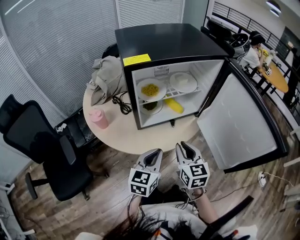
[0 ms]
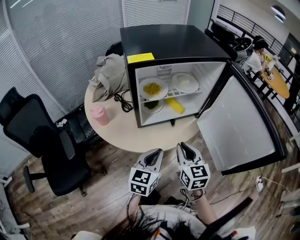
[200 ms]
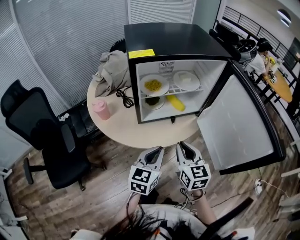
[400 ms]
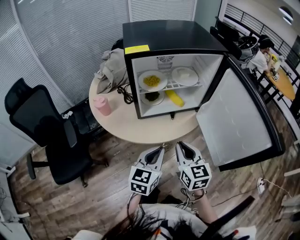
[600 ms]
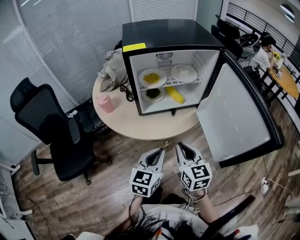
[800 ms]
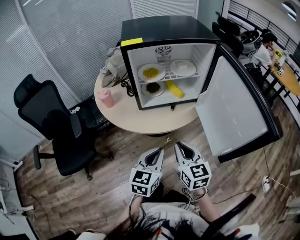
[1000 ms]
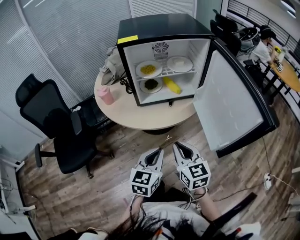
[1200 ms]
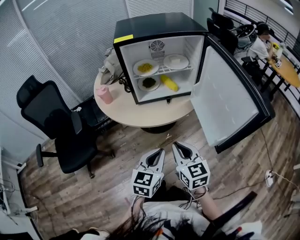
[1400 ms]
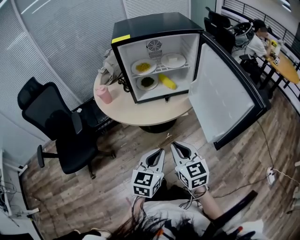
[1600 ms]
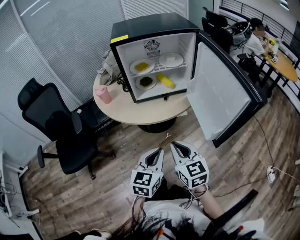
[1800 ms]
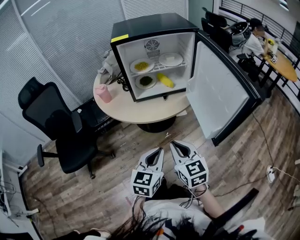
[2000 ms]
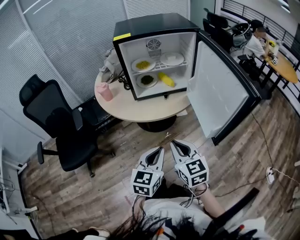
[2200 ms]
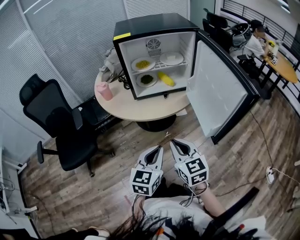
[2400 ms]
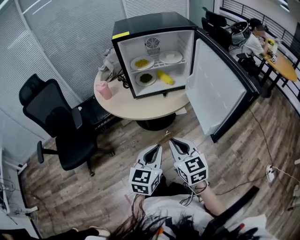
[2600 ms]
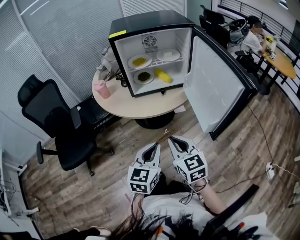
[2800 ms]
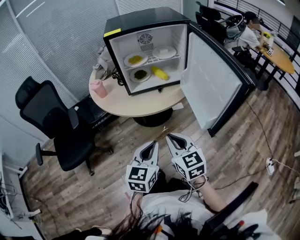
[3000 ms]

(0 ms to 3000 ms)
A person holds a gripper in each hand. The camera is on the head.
0 ms - 1600 ms: The right gripper shifts some 15 cm backward. Meanwhile the left gripper travels backward and to the right by about 20 cm.
1600 ms - 3000 ms: The grippers stay close to where they were, moving slightly.

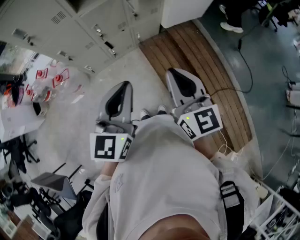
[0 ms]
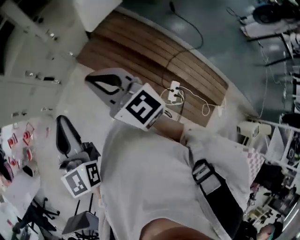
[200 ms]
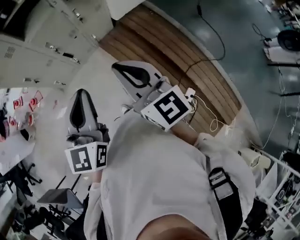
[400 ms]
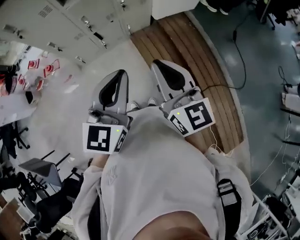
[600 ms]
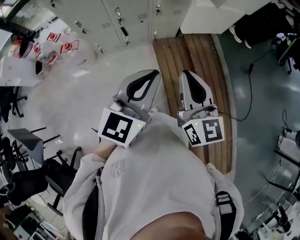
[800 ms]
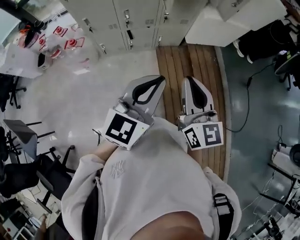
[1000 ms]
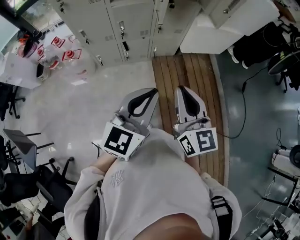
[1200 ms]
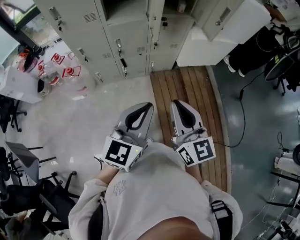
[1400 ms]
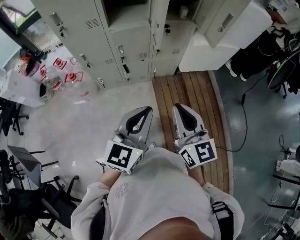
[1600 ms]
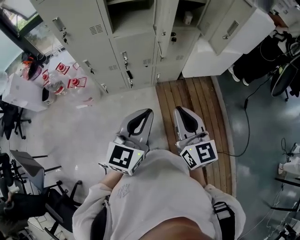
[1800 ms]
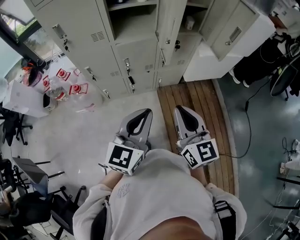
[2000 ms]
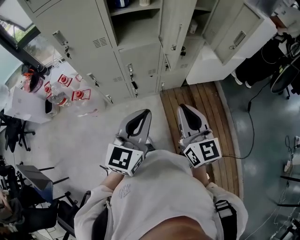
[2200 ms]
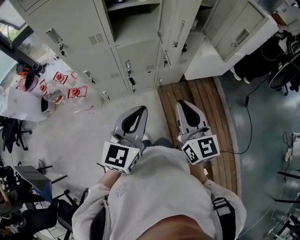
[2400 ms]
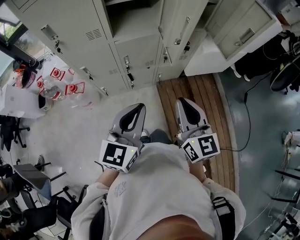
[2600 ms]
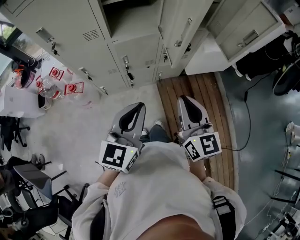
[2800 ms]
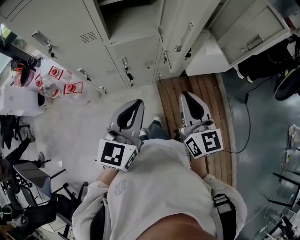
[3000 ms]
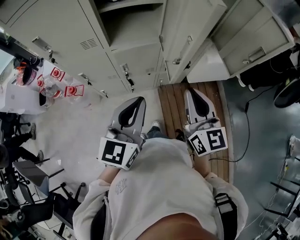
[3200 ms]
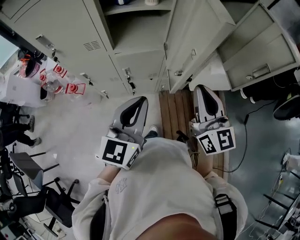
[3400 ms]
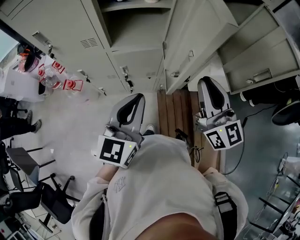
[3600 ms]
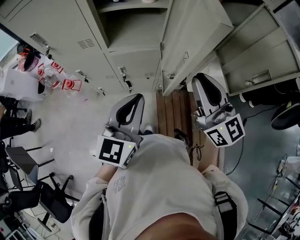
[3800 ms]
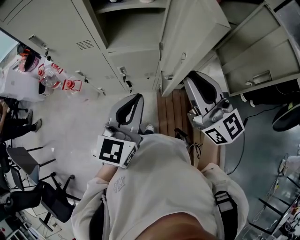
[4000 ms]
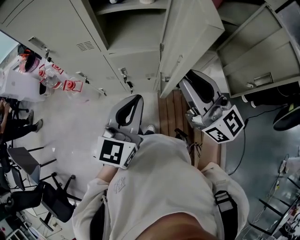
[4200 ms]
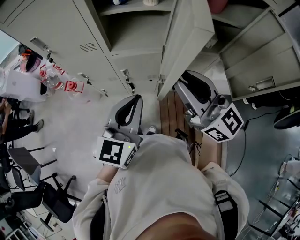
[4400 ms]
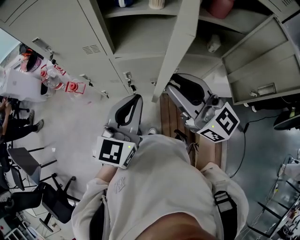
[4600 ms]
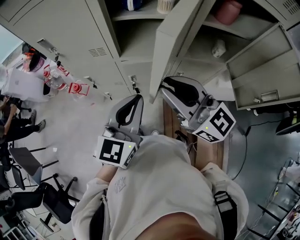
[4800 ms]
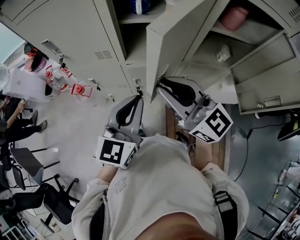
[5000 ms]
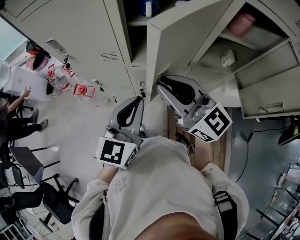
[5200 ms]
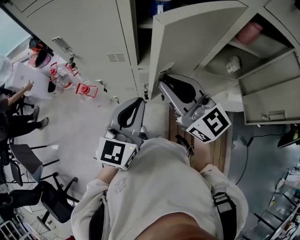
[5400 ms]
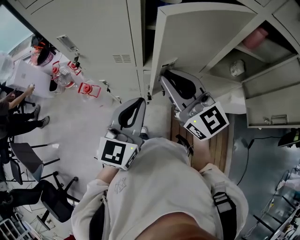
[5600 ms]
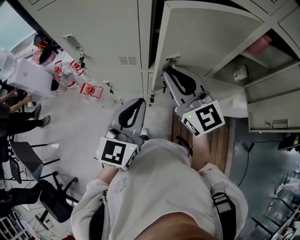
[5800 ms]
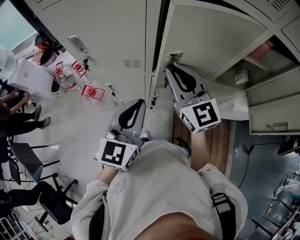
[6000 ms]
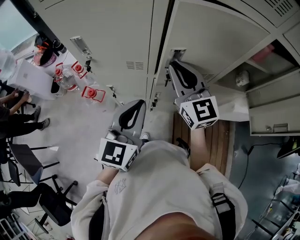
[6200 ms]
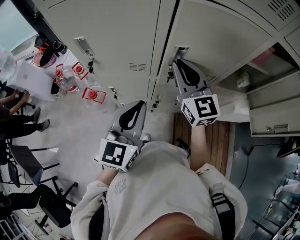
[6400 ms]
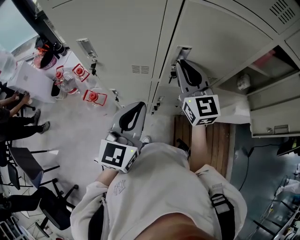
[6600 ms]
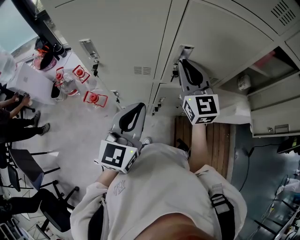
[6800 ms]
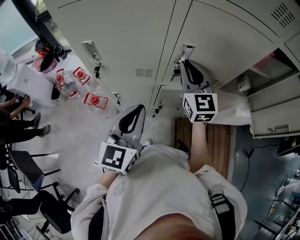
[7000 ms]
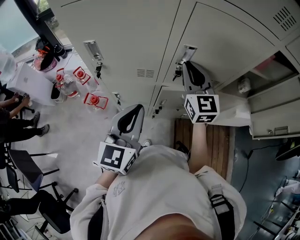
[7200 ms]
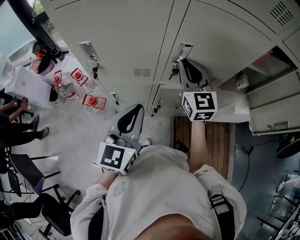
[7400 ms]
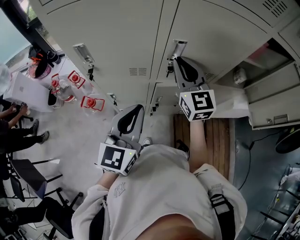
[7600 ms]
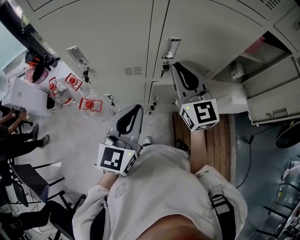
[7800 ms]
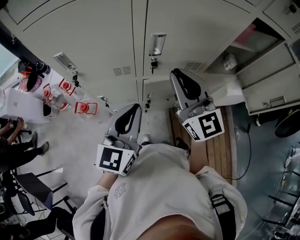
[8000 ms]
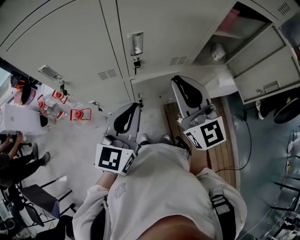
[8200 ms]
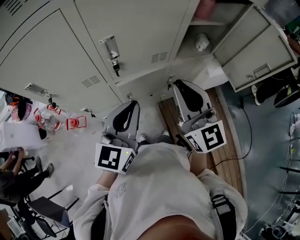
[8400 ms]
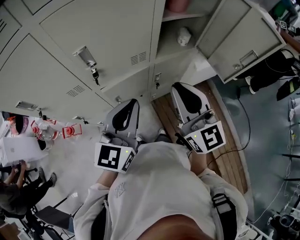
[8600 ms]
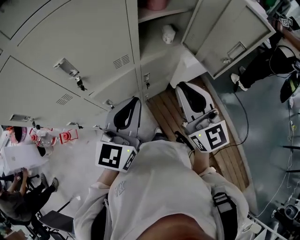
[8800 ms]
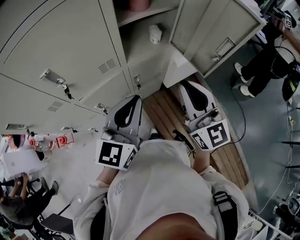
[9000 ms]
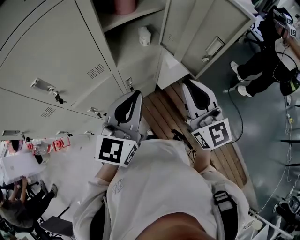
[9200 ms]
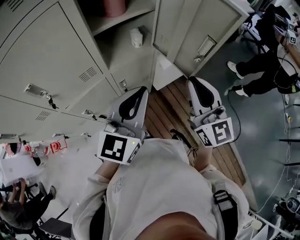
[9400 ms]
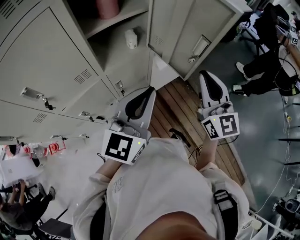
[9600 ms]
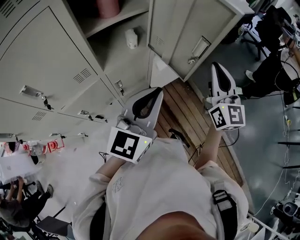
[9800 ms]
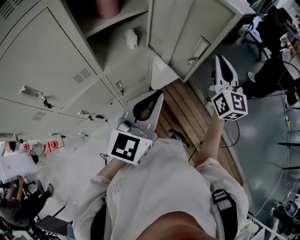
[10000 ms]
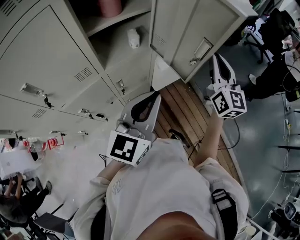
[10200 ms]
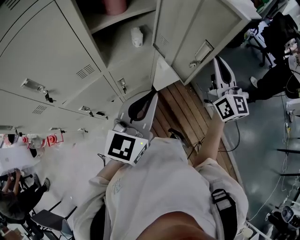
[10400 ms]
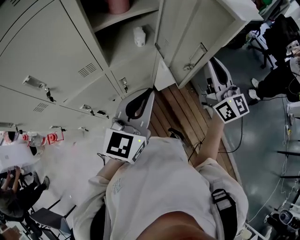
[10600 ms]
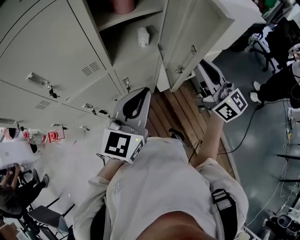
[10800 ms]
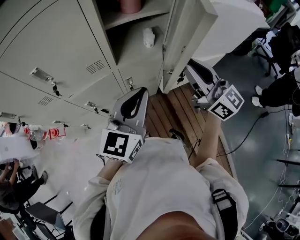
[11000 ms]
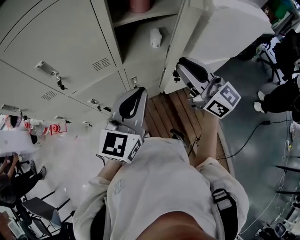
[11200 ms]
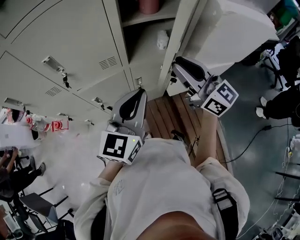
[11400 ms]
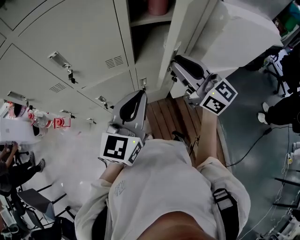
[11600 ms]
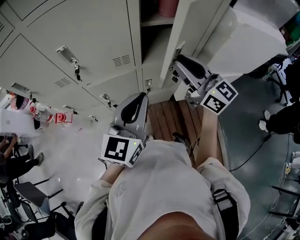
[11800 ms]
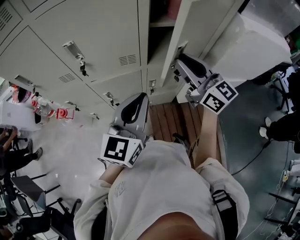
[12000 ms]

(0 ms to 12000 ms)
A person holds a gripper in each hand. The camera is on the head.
0 ms - 1600 ms: The left gripper travels to the right by about 5 cm. The right gripper is displaced forward by roughly 10 cm, and turns by roughly 30 degrees.
1600 ms - 3000 ms: The right gripper travels forward by some 20 cm; the left gripper goes some 20 cm forward and to the left.
3000 ms - 4400 ms: The left gripper travels forward by roughly 10 cm. The right gripper travels forward and upward by roughly 15 cm, and swivels about 40 degrees.
4400 ms - 6000 ms: The left gripper is displaced to the left and forward by approximately 20 cm. The right gripper moves forward and to the left, about 25 cm, and turns by approximately 20 degrees.
6000 ms - 7600 ms: The right gripper is displaced forward by roughly 5 cm.
7600 ms - 9000 ms: The right gripper changes place by some 40 cm, and changes its angle by roughly 20 degrees, while the left gripper ends up some 30 cm from where it was, and changes its angle by approximately 30 degrees.
9000 ms - 10400 ms: The left gripper shifts some 15 cm to the right; the right gripper heads to the right and forward, covering roughly 25 cm.
10400 ms - 12000 ms: The right gripper shifts by approximately 25 cm, and rotates some 50 degrees; the left gripper shifts by approximately 15 cm, and changes its angle by about 20 degrees.

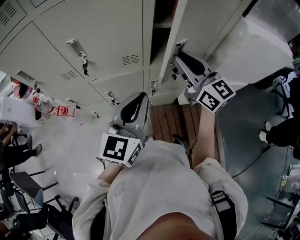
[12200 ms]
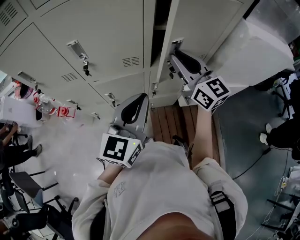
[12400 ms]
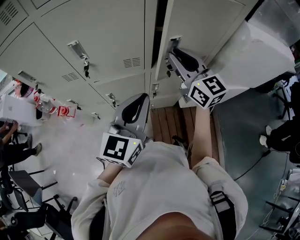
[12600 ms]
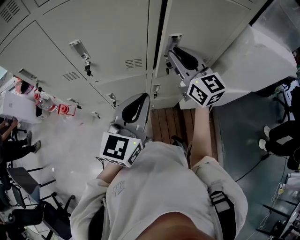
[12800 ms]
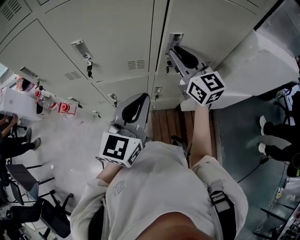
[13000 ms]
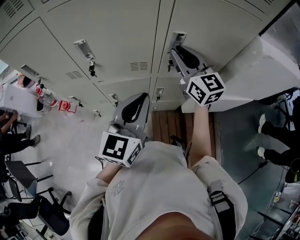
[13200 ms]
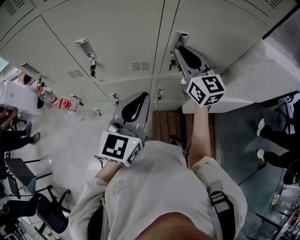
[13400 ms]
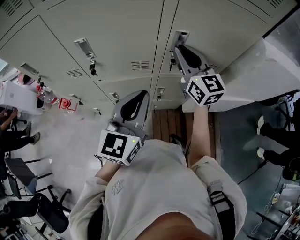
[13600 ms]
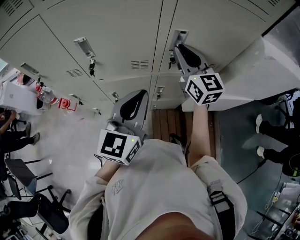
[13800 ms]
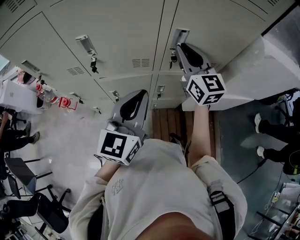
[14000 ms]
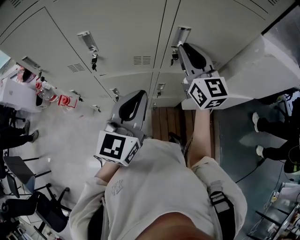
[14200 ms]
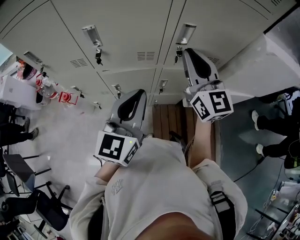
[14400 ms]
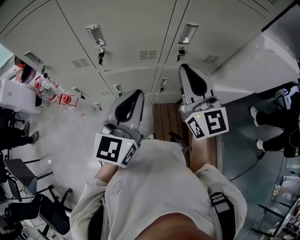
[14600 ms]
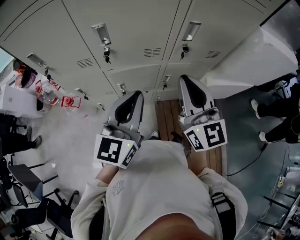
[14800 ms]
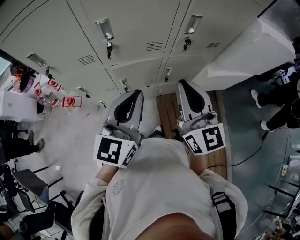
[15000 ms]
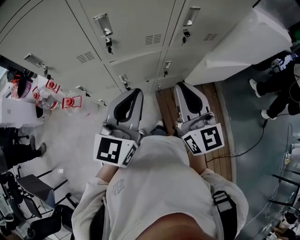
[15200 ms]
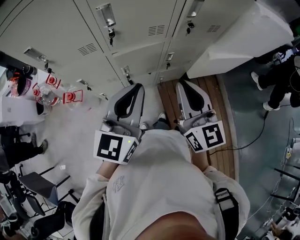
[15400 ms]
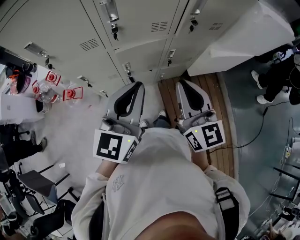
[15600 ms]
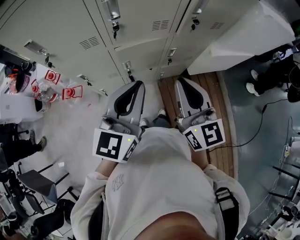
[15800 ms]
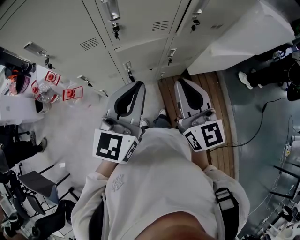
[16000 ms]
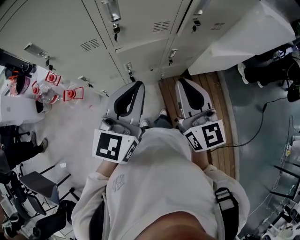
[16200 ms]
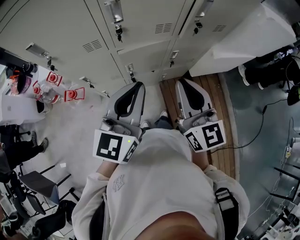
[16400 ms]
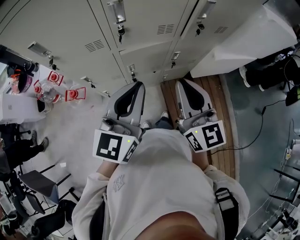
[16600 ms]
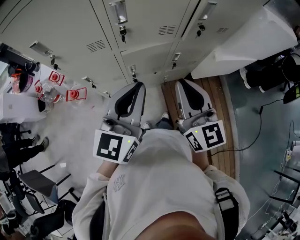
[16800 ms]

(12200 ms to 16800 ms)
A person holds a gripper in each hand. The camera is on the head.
12200 ms - 13800 ms: The right gripper travels forward by roughly 10 cm.
13800 ms - 15200 ms: The right gripper goes approximately 25 cm backward and to the left. The left gripper heads to the left and backward, covering approximately 15 cm.
15200 ms - 16800 ms: The right gripper ends up about 5 cm from where it was.

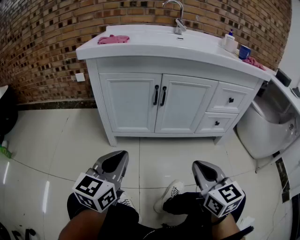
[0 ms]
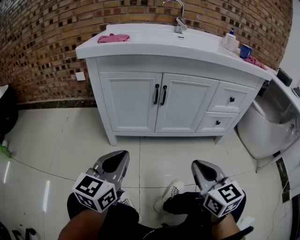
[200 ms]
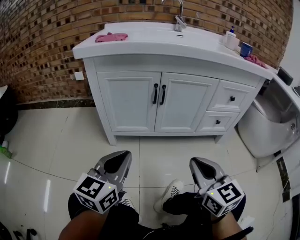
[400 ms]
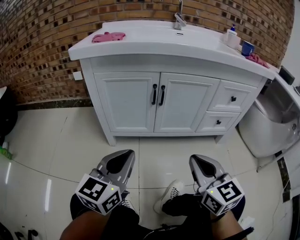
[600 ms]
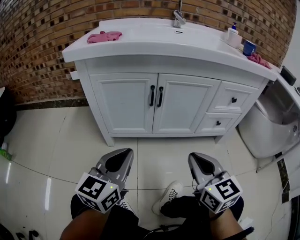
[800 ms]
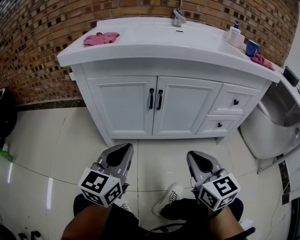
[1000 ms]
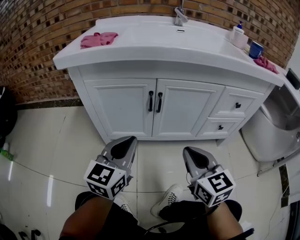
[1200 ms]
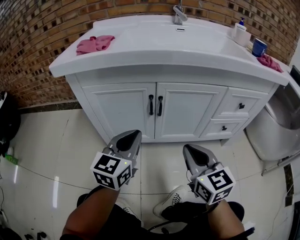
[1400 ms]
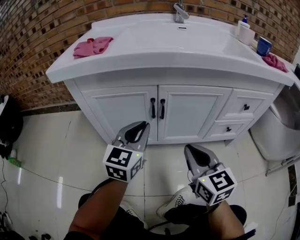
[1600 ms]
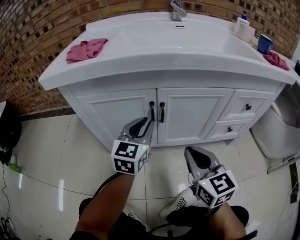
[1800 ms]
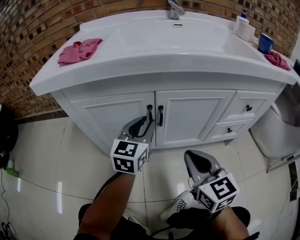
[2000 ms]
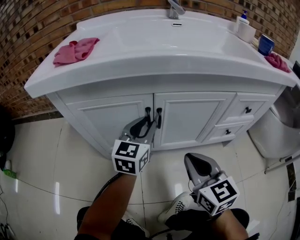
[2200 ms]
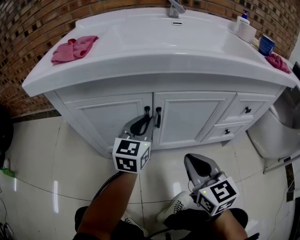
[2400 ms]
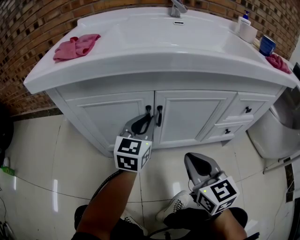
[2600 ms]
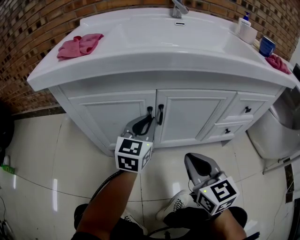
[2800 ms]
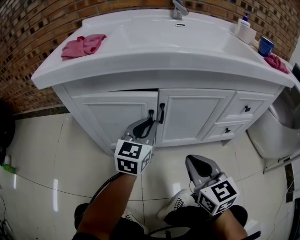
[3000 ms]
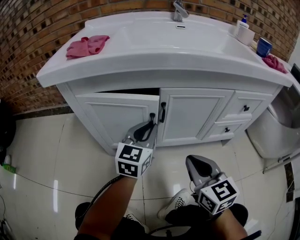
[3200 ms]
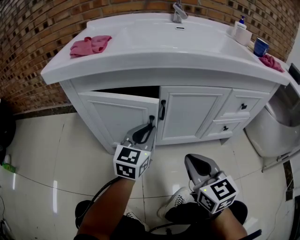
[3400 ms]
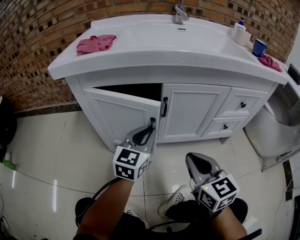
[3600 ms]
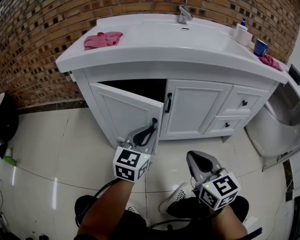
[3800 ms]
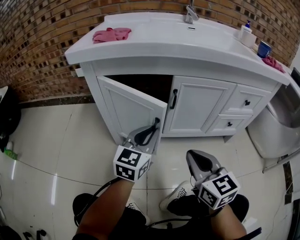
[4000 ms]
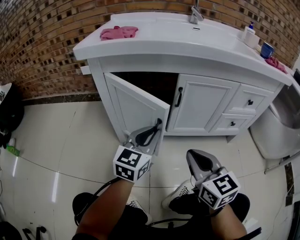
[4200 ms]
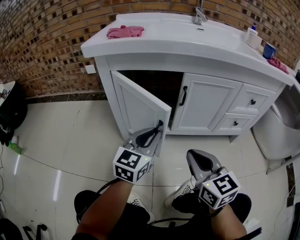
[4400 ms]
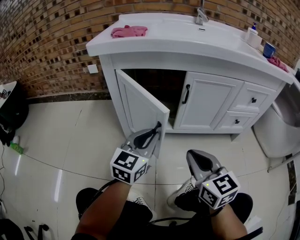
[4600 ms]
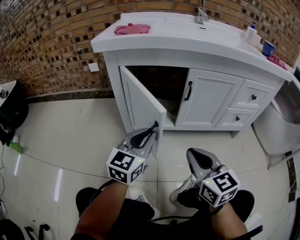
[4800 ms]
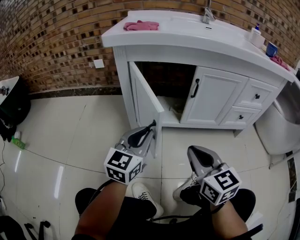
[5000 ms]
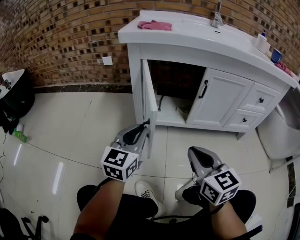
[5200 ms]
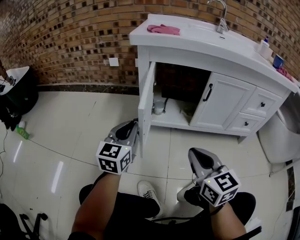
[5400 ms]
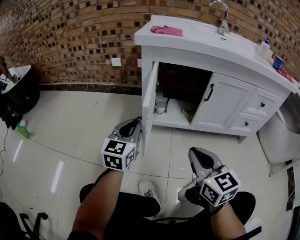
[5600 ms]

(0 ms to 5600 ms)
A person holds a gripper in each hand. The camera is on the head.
0 ms - 1400 ms: Both grippers move forward, some 15 cm.
1400 ms - 2800 ms: The left gripper is displaced forward by approximately 15 cm.
2800 ms - 4200 ms: The right gripper travels backward and to the left by about 10 cm; the left gripper travels backward by some 15 cm.
4200 ms - 5600 ms: The left gripper is displaced to the left by about 25 cm. Meanwhile the right gripper shifts some 15 cm to the left and backward.
